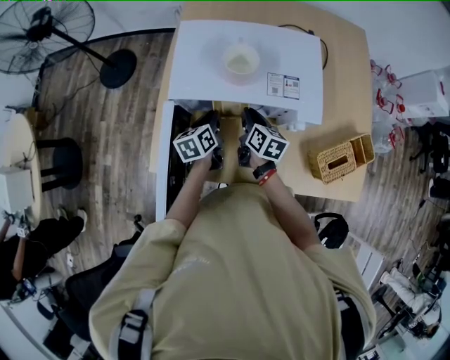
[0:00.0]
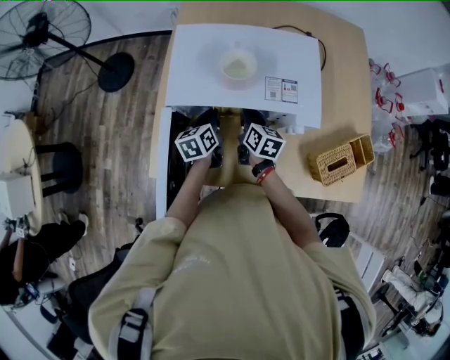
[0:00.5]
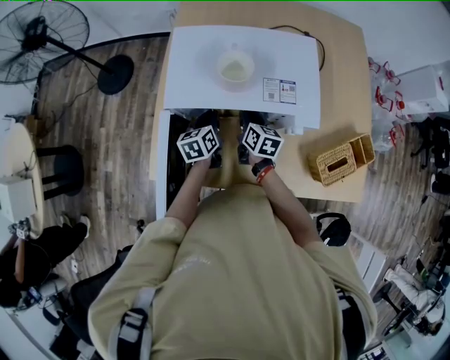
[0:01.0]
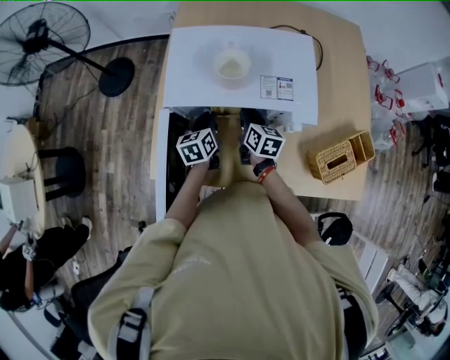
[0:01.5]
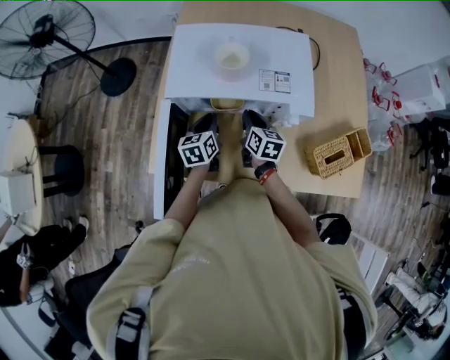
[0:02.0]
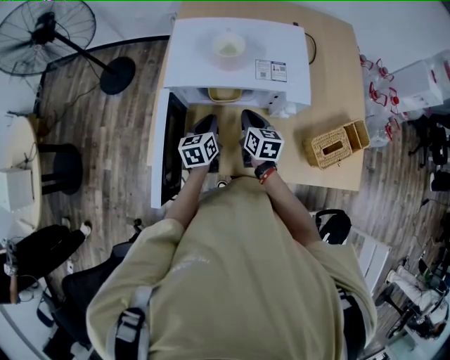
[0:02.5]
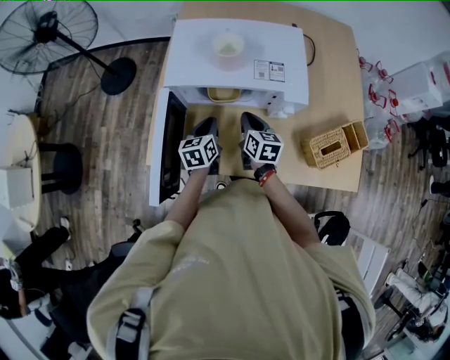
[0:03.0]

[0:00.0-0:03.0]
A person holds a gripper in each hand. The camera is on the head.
0:00.0 to 0:01.5: The grippers make only small movements.
0:01.5 to 0:03.0: Both grippers travel together backward, approximately 10 cm.

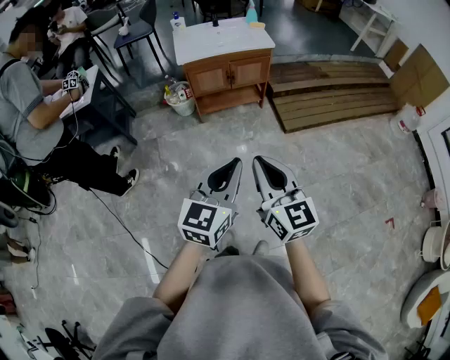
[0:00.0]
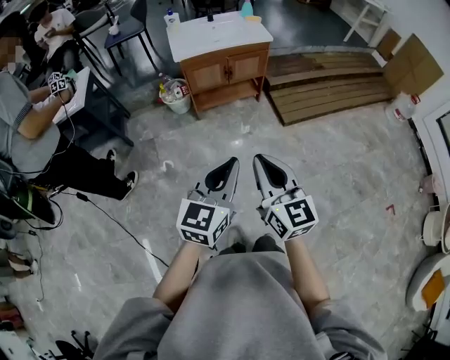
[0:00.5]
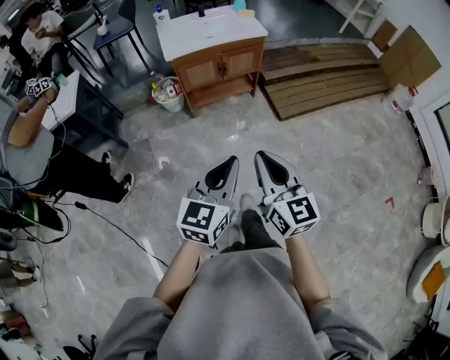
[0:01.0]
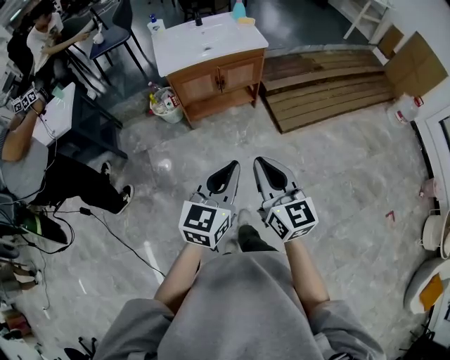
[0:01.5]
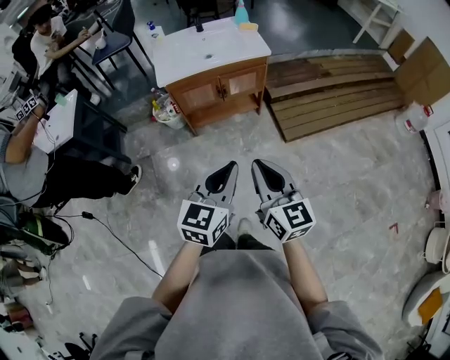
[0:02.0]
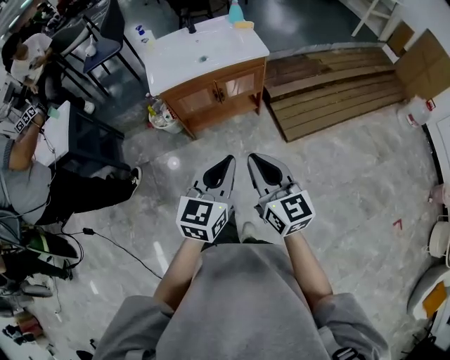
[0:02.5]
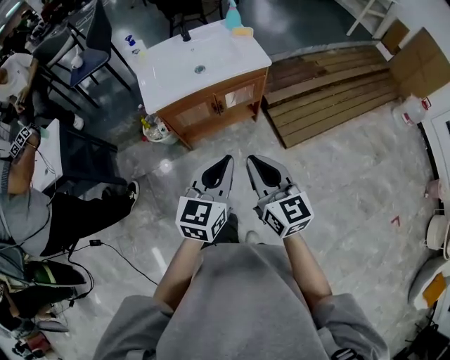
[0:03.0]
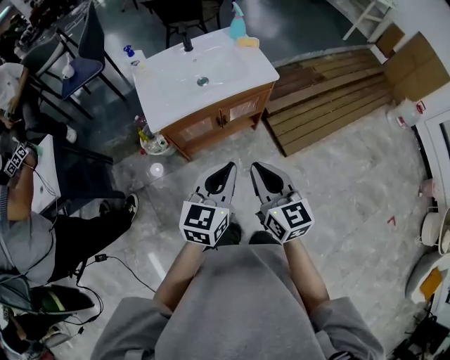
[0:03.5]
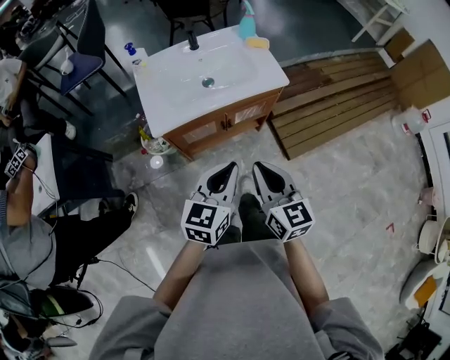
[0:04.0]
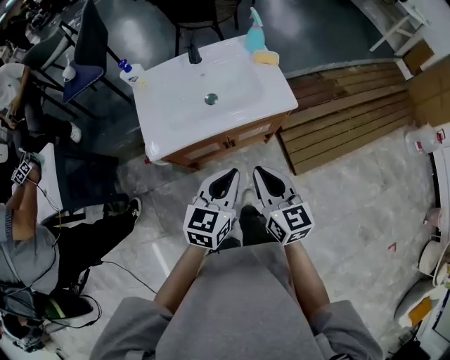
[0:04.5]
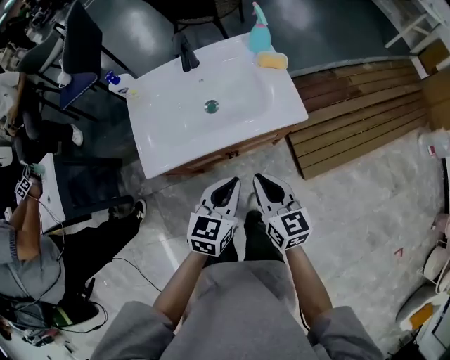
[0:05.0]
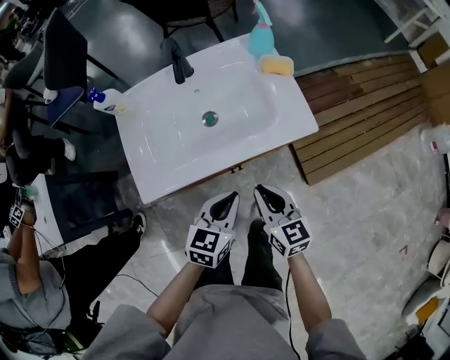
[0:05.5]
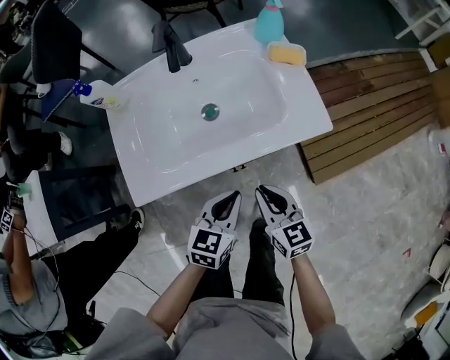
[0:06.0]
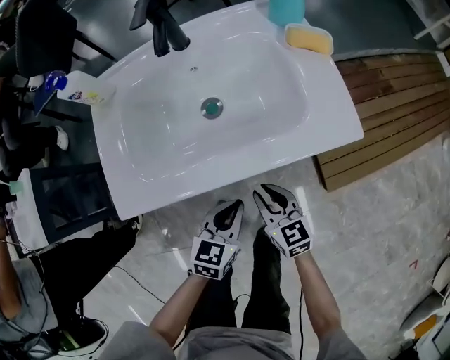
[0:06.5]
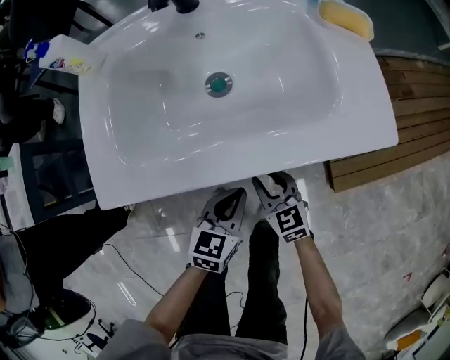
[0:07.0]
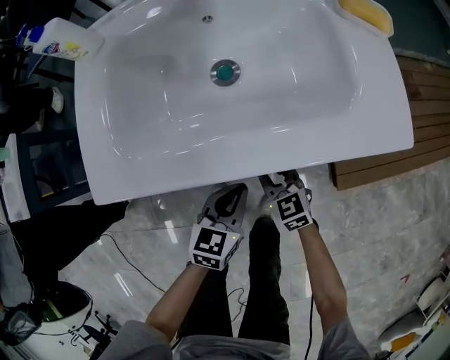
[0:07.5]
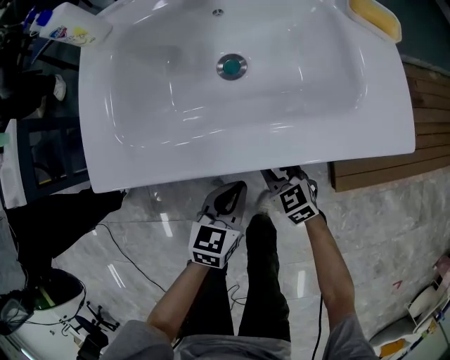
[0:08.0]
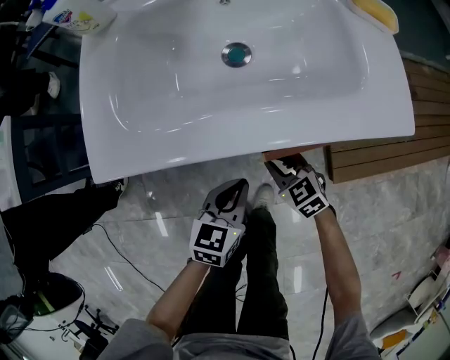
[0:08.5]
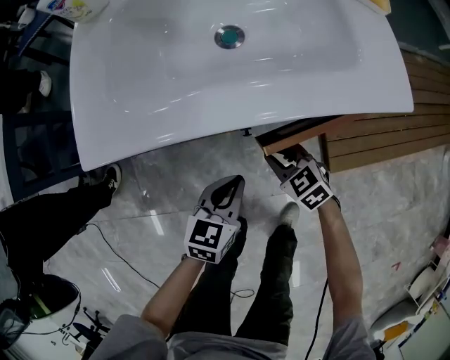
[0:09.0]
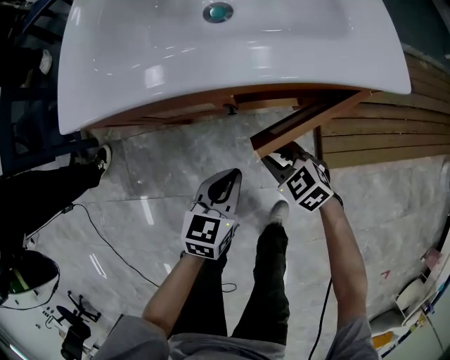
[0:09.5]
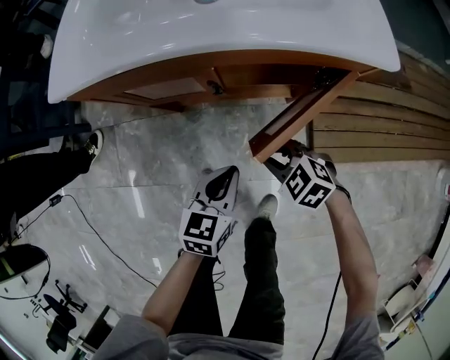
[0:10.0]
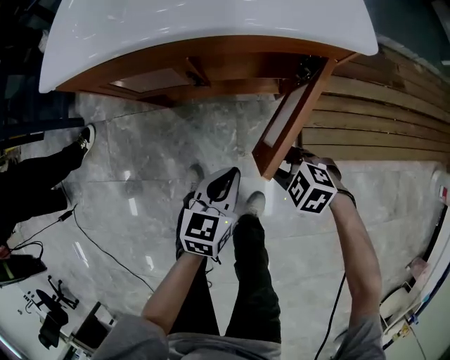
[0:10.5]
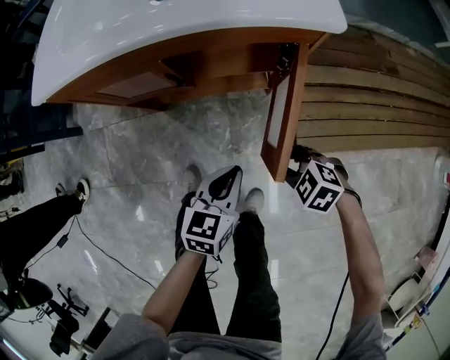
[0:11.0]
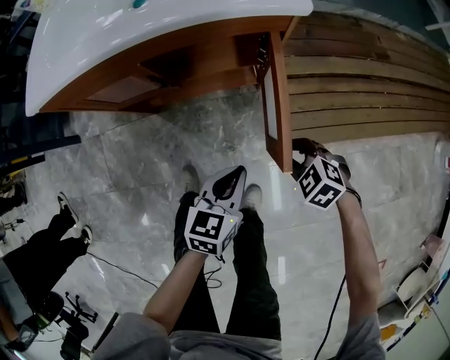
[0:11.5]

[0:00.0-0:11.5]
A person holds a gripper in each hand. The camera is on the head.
0:00.0 to 0:02.0: Both grippers move forward, about 25 cm.
0:02.0 to 0:04.0: The grippers both shift forward by about 30 cm.
0:04.0 to 0:06.0: The two grippers go about 30 cm downward and forward.
0:06.0 to 0:07.5: Both grippers move downward, roughly 20 cm. The right gripper swivels some 20 degrees.
0:07.5 to 0:09.5: The grippers both shift backward by some 10 cm. The right gripper changes its angle by some 30 degrees.
0:09.5 to 0:11.5: Both grippers travel together backward and to the right, roughly 20 cm.

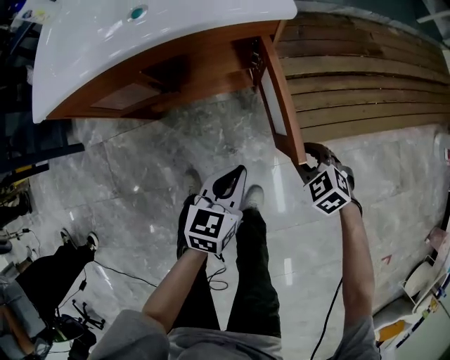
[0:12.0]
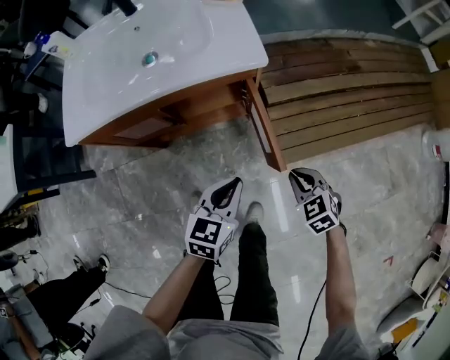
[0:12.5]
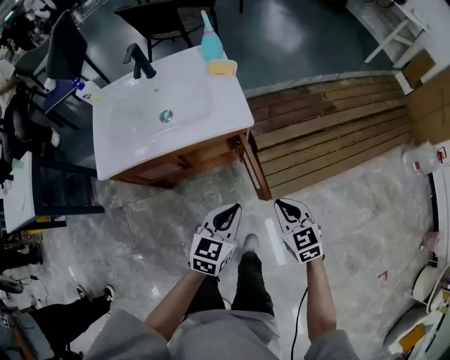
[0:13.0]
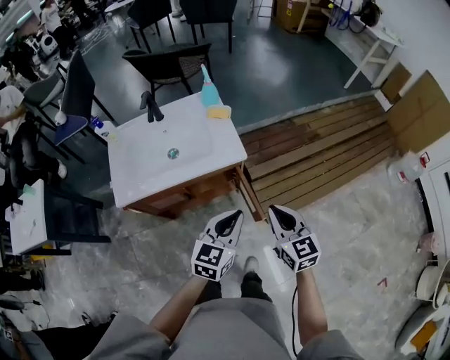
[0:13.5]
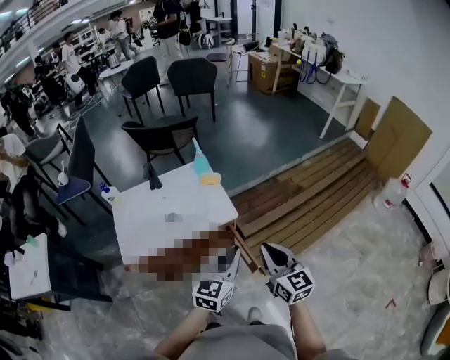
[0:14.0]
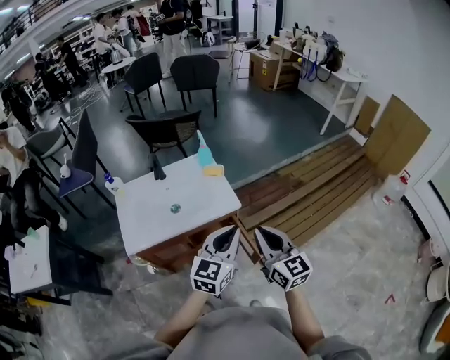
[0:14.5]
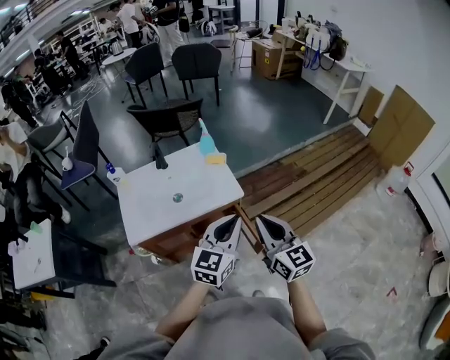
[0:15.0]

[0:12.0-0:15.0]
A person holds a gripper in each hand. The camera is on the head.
0:12.0 to 0:13.5: Both grippers move upward, roughly 40 cm. The left gripper swivels some 20 degrees. The right gripper tilts its fingers approximately 40 degrees upward.
0:13.5 to 0:15.0: The right gripper moves upward and to the left, some 15 cm. Meanwhile the left gripper is displaced upward by about 10 cm.

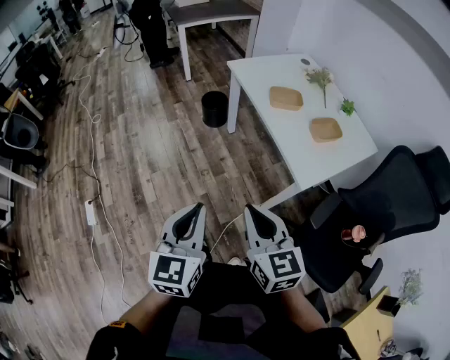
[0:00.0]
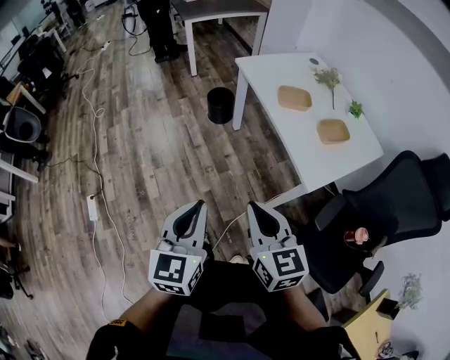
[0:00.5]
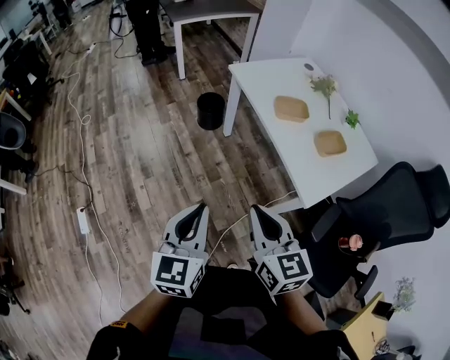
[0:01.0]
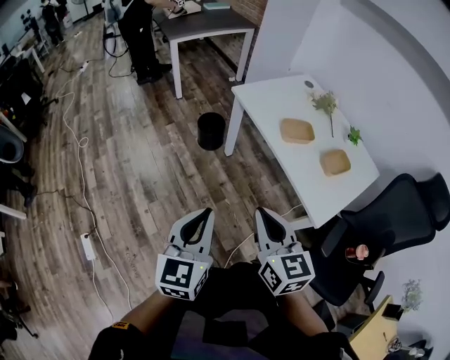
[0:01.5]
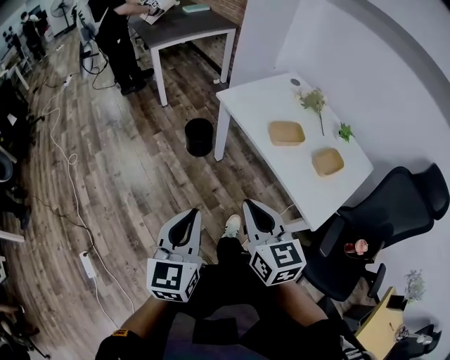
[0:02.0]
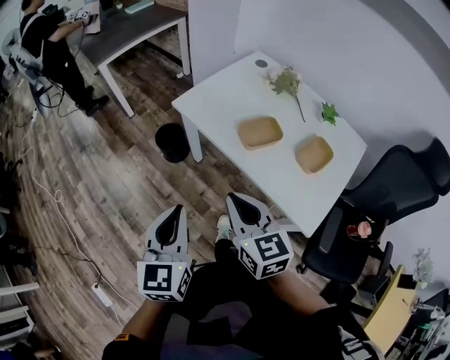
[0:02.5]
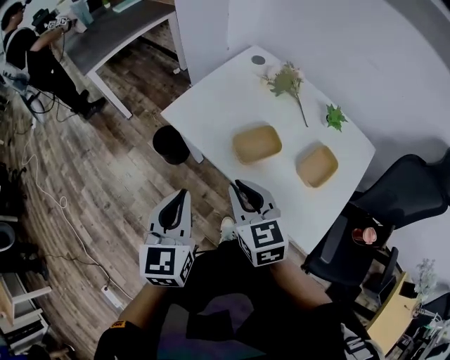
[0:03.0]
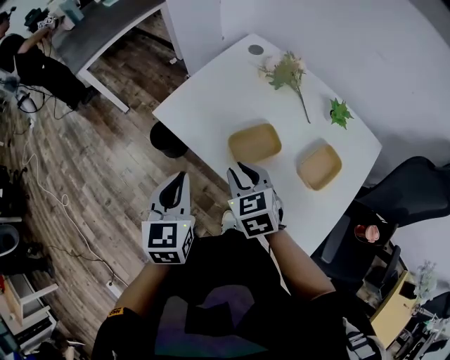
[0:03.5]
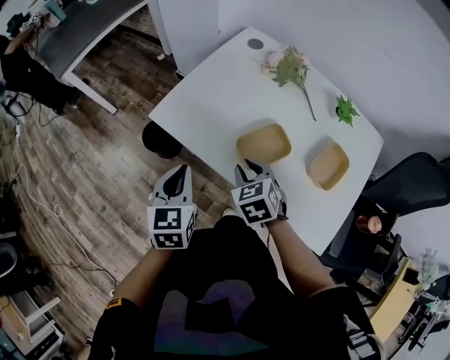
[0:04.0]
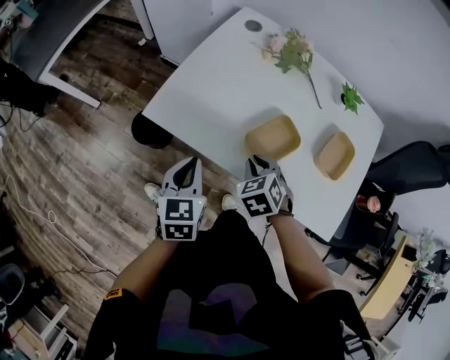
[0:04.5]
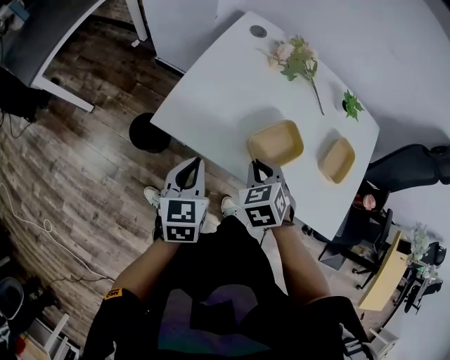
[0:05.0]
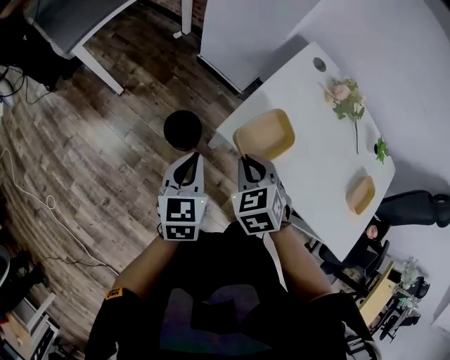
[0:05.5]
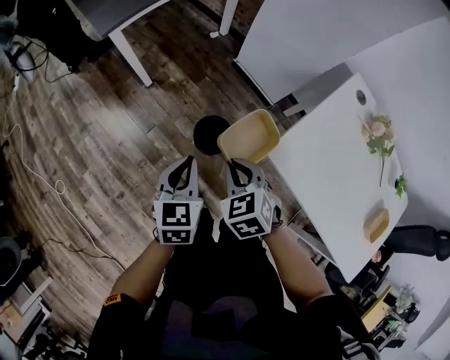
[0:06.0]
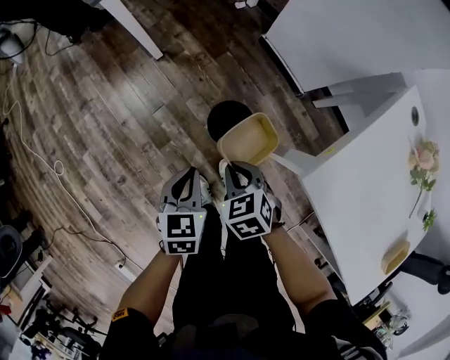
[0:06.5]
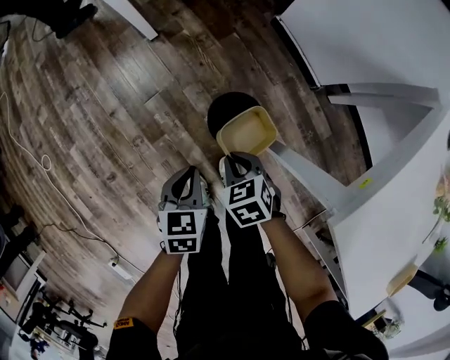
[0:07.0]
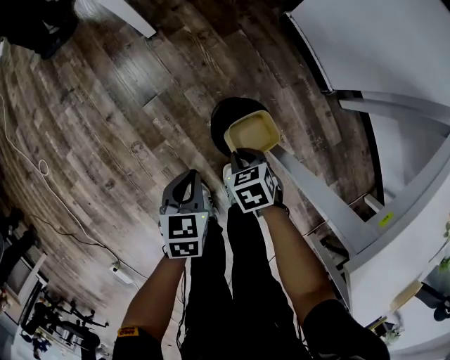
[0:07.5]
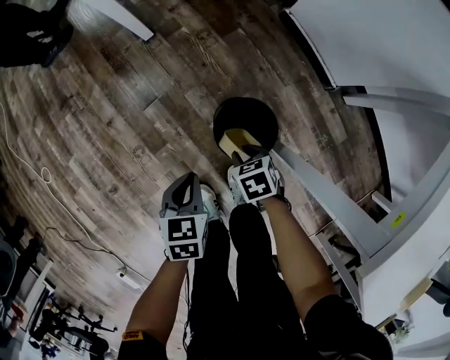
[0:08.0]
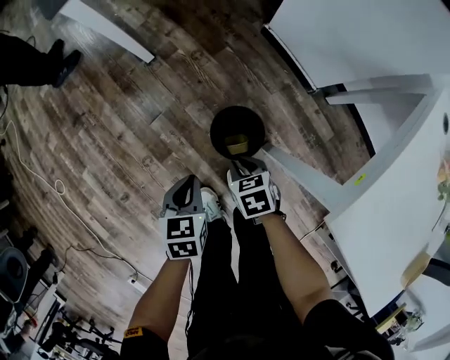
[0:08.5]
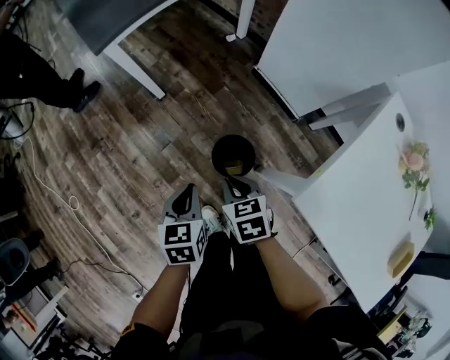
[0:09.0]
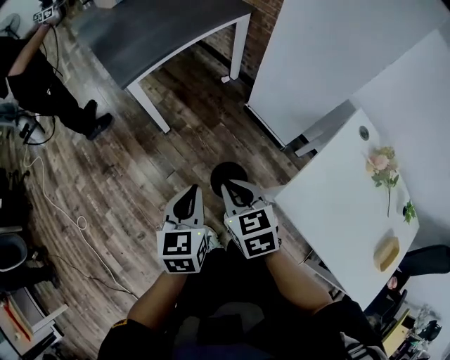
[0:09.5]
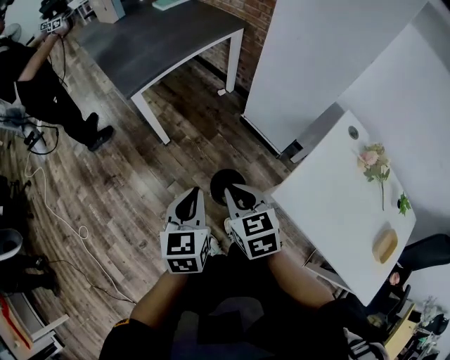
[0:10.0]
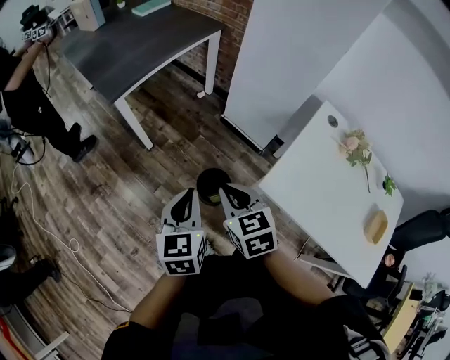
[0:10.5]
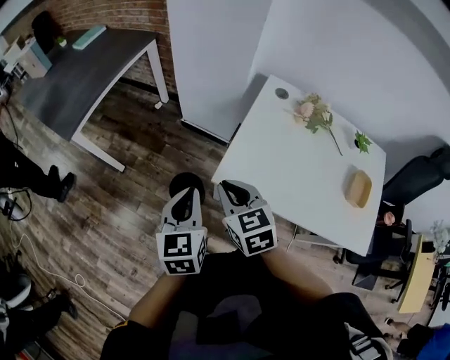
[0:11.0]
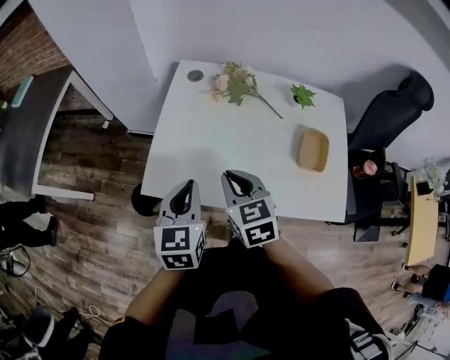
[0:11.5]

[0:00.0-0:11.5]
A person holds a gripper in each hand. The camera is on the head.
0:00.0 to 0:02.0: Both grippers move forward and to the left, some 25 cm.
0:02.0 to 0:04.0: The two grippers travel together, forward, about 40 cm. The left gripper rotates approximately 20 degrees. Meanwhile the right gripper is displaced downward by roughly 20 cm, tips its fingers downward by approximately 30 degrees, and opens.
0:04.0 to 0:06.0: Both grippers are carried some 40 cm.
0:06.0 to 0:07.5: Both grippers move downward, roughly 40 cm. The left gripper changes its angle by roughly 30 degrees. Meanwhile the right gripper changes its angle by approximately 30 degrees.
0:07.5 to 0:09.5: Both grippers travel together upward, some 50 cm. The left gripper rotates some 30 degrees; the right gripper points its fingers approximately 30 degrees further upward.
0:09.5 to 0:11.5: The two grippers travel together, approximately 50 cm. The right gripper swivels some 40 degrees. The left gripper swivels some 40 degrees.
